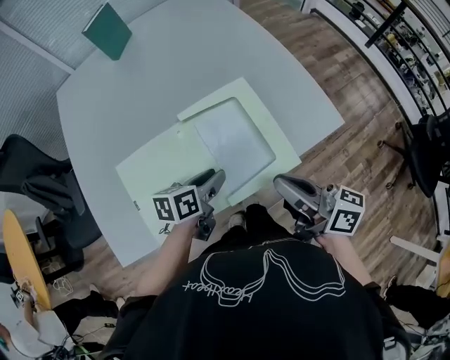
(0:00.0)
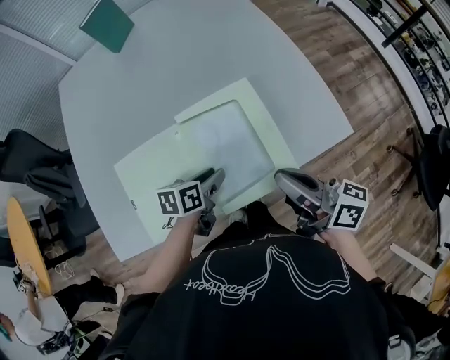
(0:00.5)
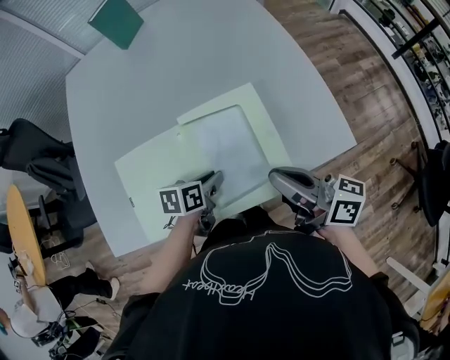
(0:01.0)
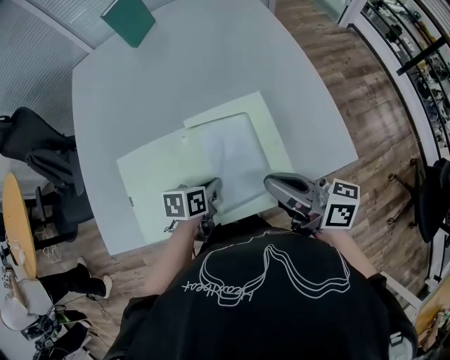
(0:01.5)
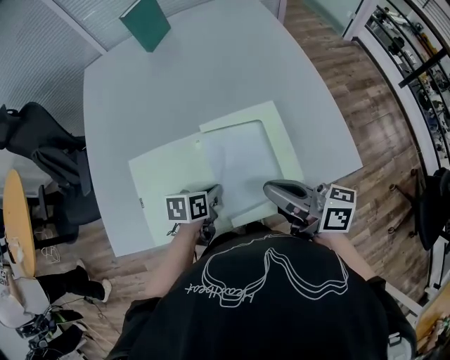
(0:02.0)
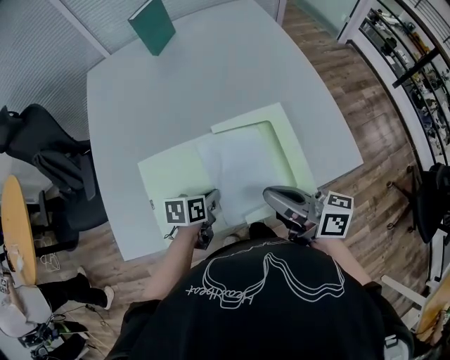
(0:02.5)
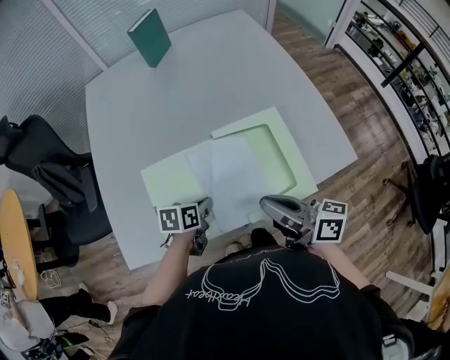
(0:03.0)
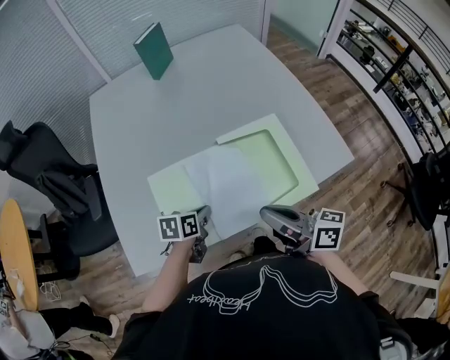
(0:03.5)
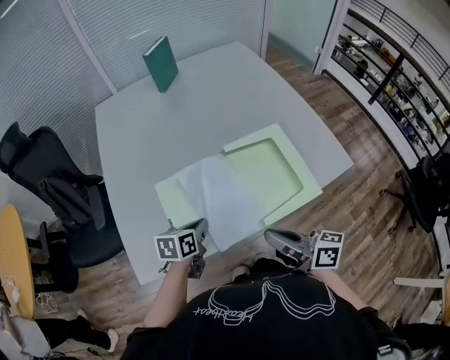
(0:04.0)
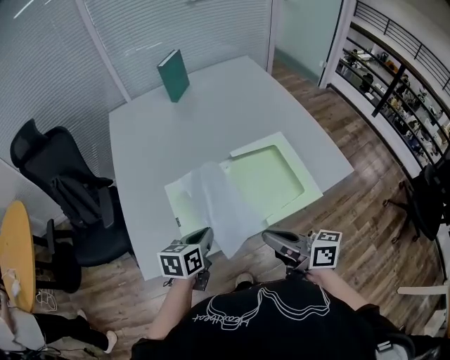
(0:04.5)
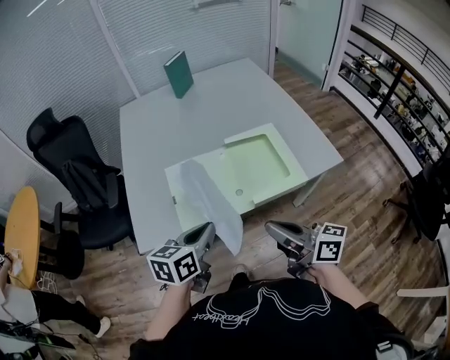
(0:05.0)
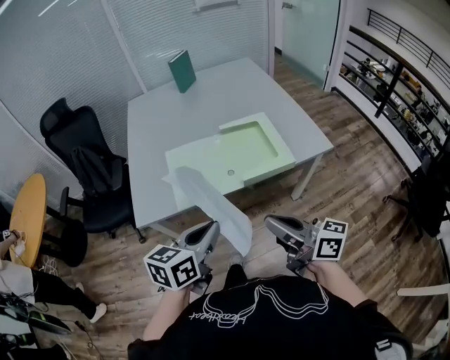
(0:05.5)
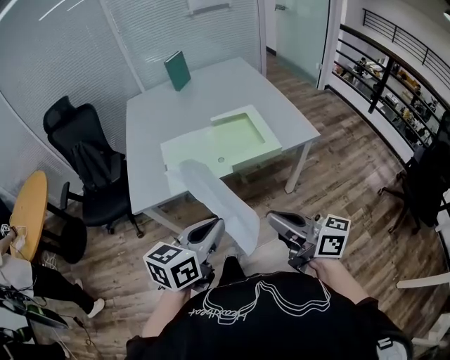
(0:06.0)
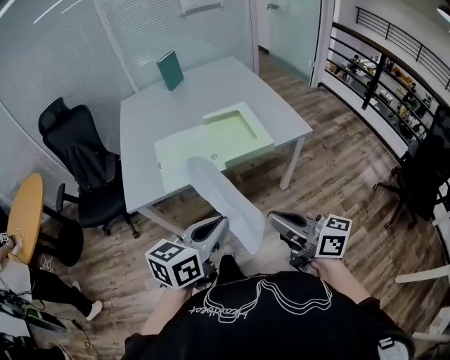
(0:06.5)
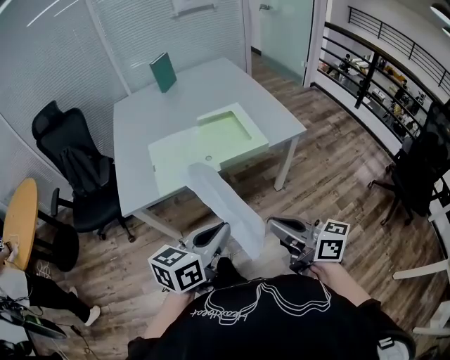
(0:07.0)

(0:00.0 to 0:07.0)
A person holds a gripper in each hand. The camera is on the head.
0:00.0 - 0:02.0: The left gripper goes roughly 5 cm downward, and closes its fingers. The right gripper shifts approximately 5 cm forward.
0:02.0 - 0:03.5: The right gripper heads to the left and backward, covering roughly 15 cm, while the left gripper moves to the left, about 10 cm.
0:03.5 - 0:05.0: The right gripper moves backward, some 15 cm; the left gripper shifts approximately 25 cm backward and upward, and turns by approximately 30 degrees.
0:05.0 - 0:07.0: The right gripper moves backward, some 25 cm. The left gripper moves backward and to the right, about 30 cm.

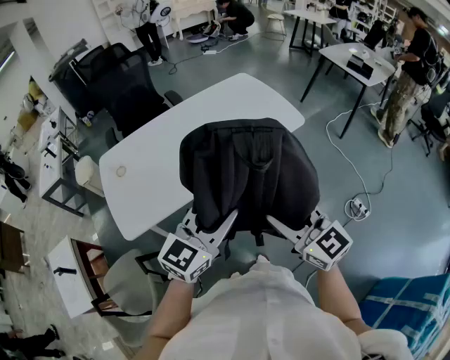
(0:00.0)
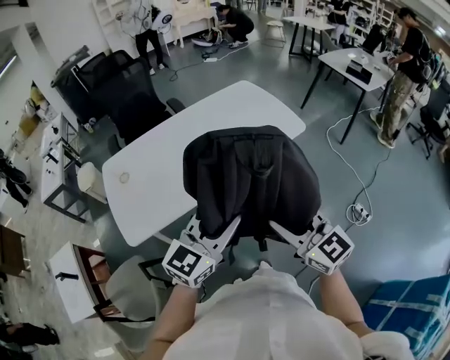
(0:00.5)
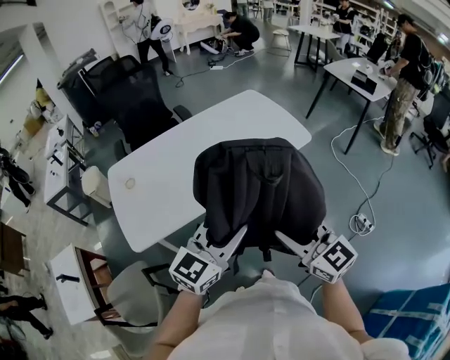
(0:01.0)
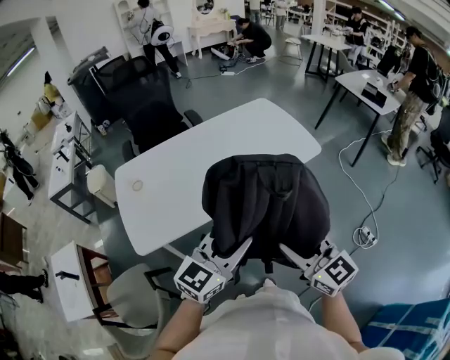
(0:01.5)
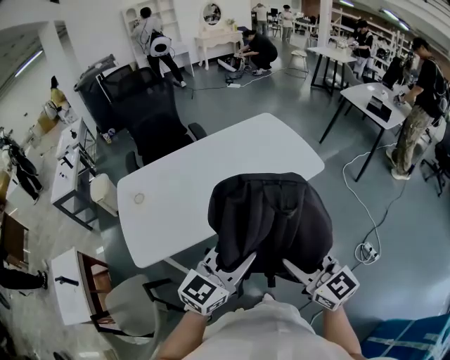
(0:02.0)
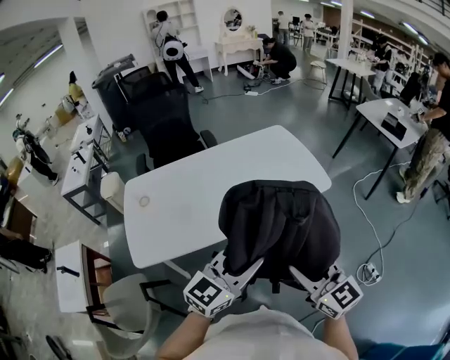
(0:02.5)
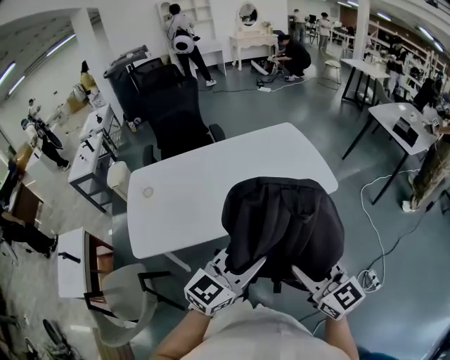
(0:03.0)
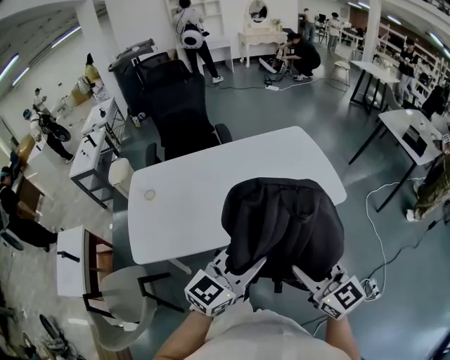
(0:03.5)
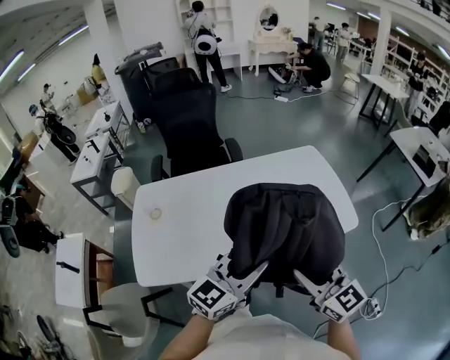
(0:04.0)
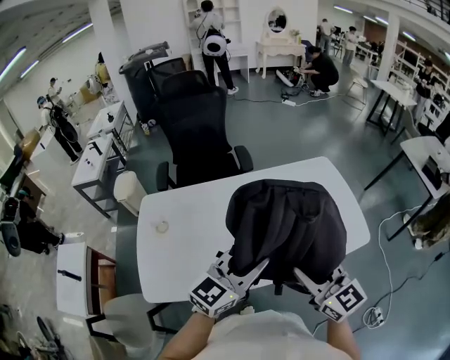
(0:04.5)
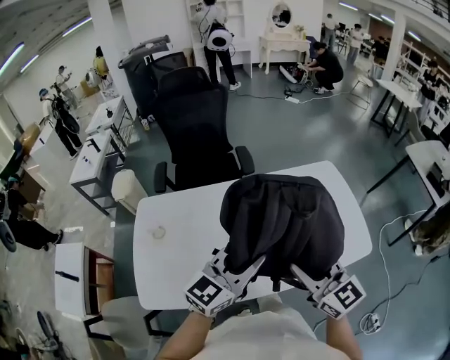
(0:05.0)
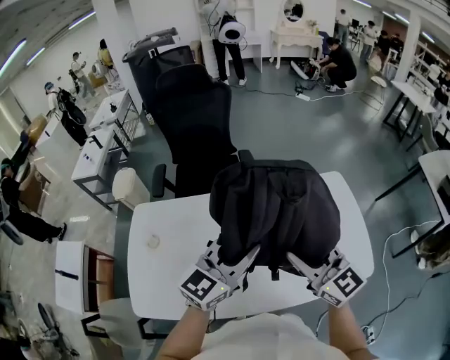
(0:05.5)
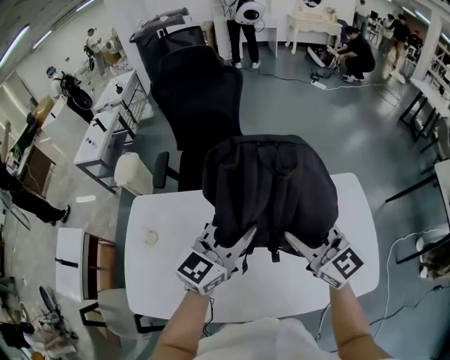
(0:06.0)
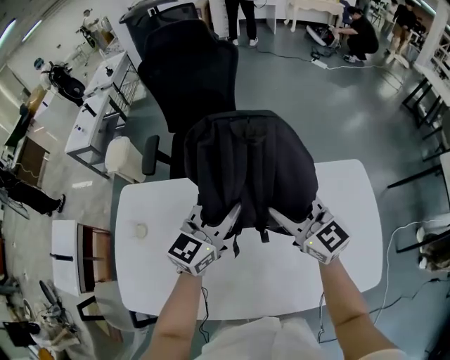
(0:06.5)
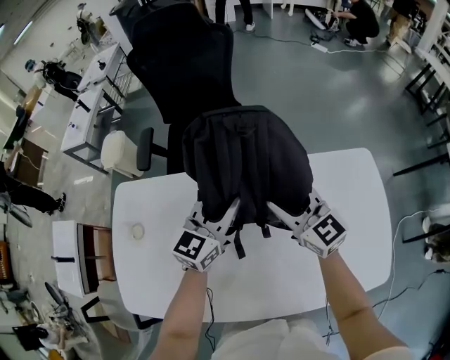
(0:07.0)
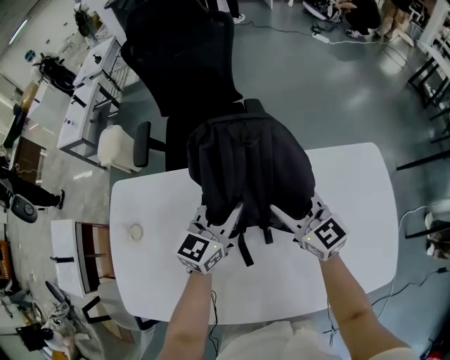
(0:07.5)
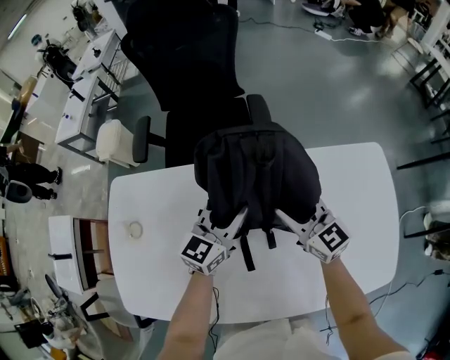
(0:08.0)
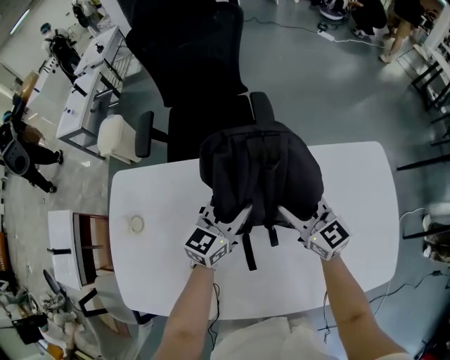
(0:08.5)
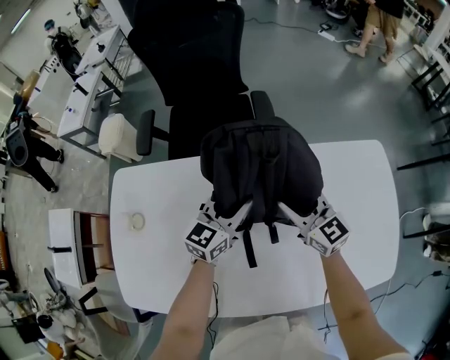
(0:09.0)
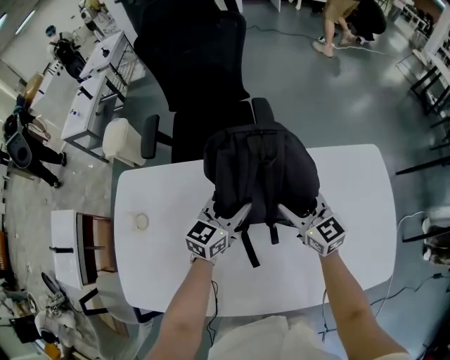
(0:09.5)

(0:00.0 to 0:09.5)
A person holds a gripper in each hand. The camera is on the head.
0:00.0 - 0:02.0: The grippers stay close to where they were, moving slightly.
0:02.0 - 0:04.0: The grippers both shift forward by approximately 20 cm.
0:04.0 - 0:05.5: Both grippers move forward, approximately 25 cm.
0:05.5 - 0:07.5: The left gripper shifts approximately 30 cm downward and forward, while the right gripper moves forward and downward, roughly 30 cm.
0:07.5 - 0:09.5: The left gripper opens.

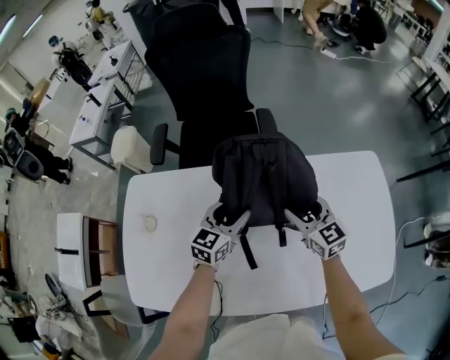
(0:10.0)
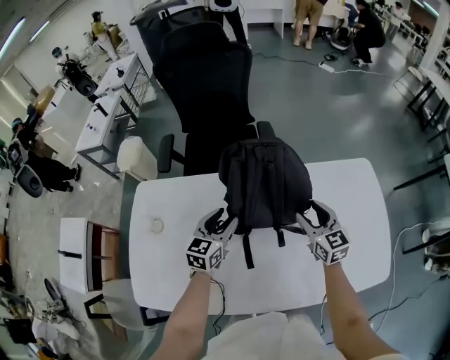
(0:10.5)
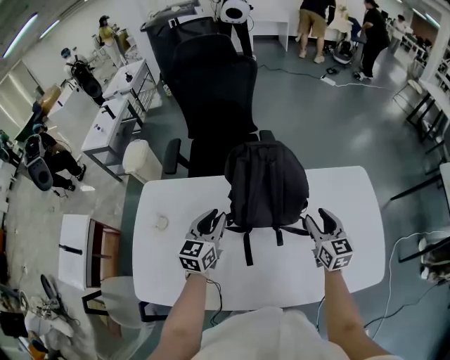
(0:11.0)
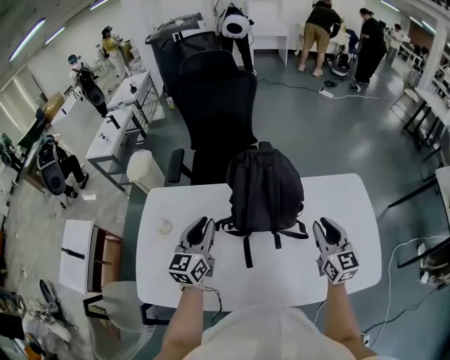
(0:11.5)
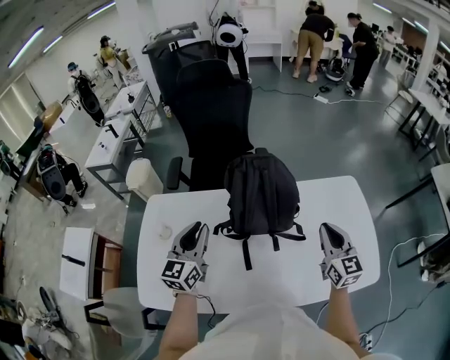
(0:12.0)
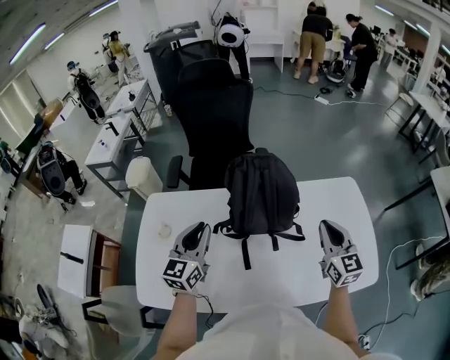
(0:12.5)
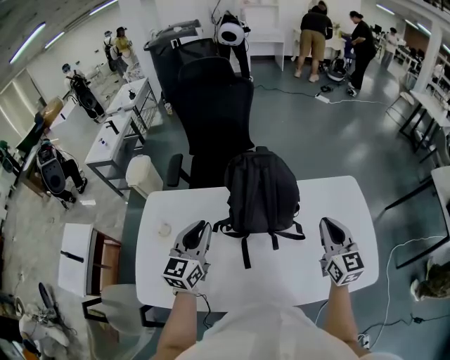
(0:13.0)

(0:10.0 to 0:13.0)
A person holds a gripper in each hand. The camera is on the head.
0:10.0 - 0:11.5: The left gripper heads upward, to the left and backward, covering roughly 20 cm, swivels roughly 20 degrees, and closes its fingers. Meanwhile the right gripper heads upward, backward and to the right, covering roughly 15 cm, and closes.
0:11.5 - 0:13.0: The grippers make only small movements.

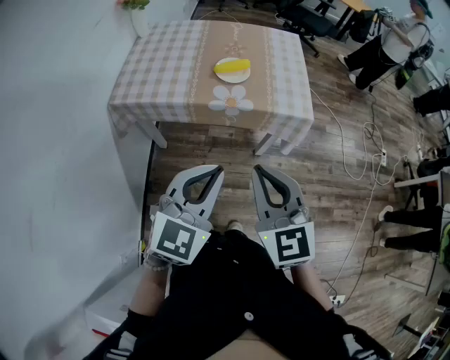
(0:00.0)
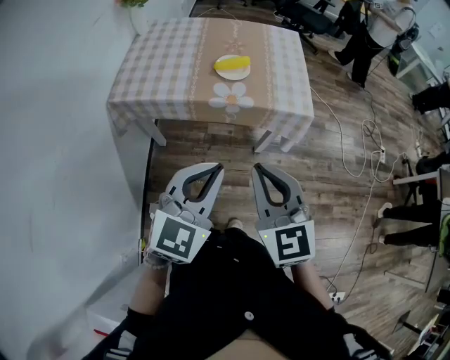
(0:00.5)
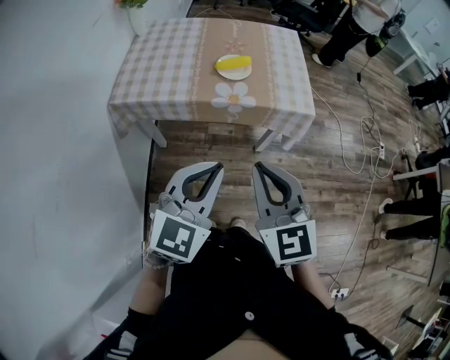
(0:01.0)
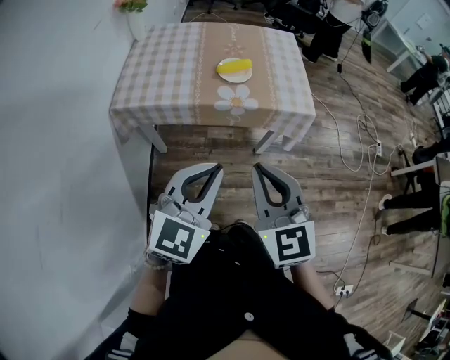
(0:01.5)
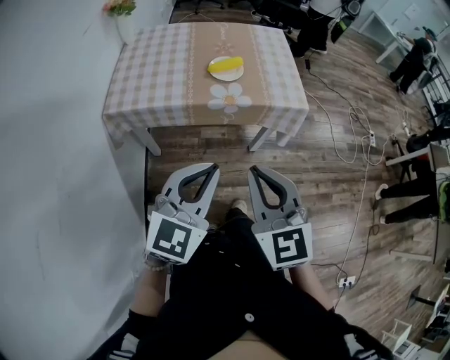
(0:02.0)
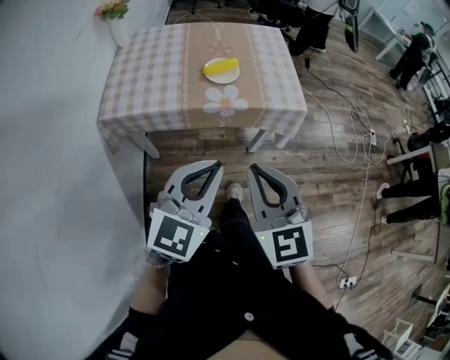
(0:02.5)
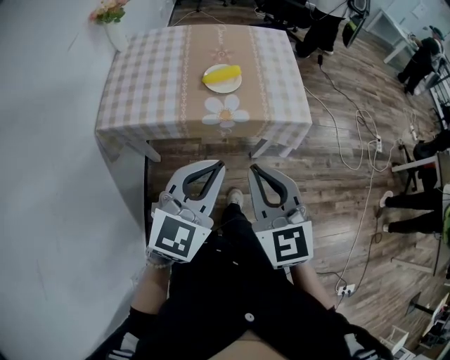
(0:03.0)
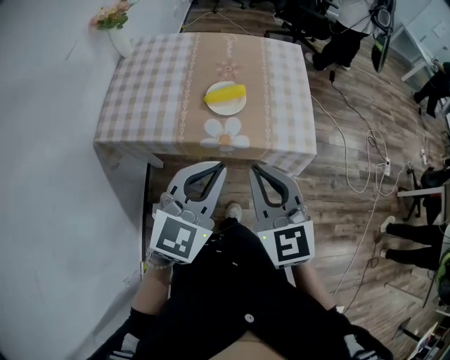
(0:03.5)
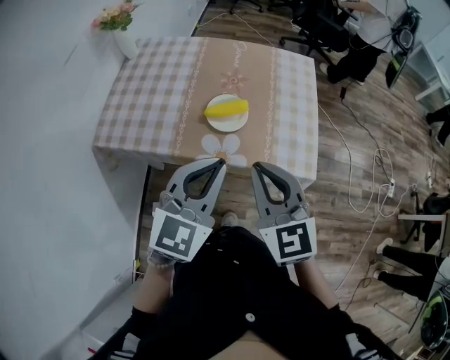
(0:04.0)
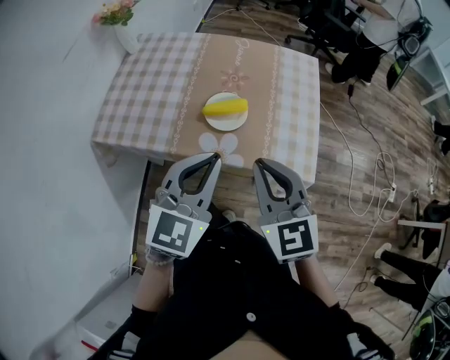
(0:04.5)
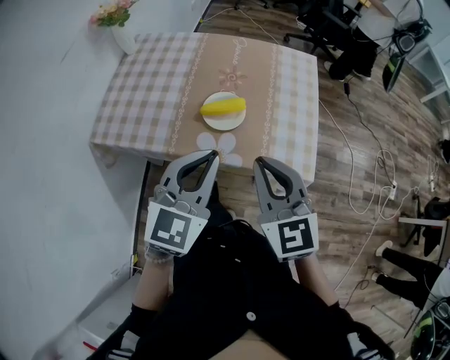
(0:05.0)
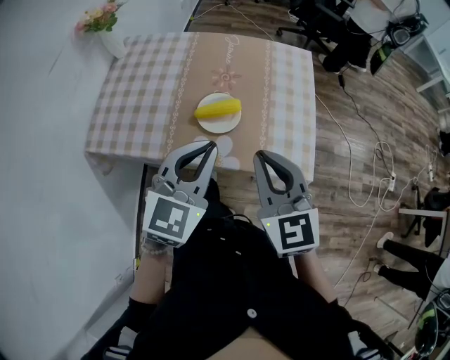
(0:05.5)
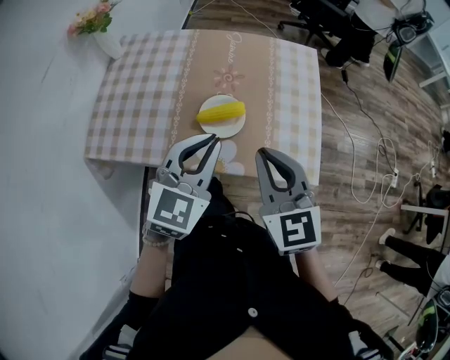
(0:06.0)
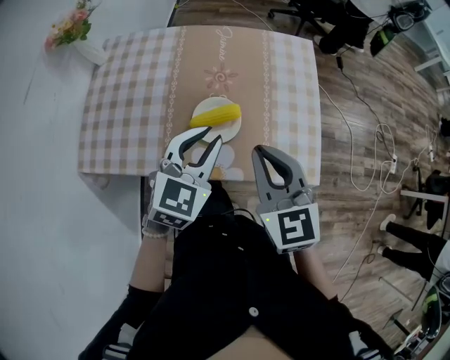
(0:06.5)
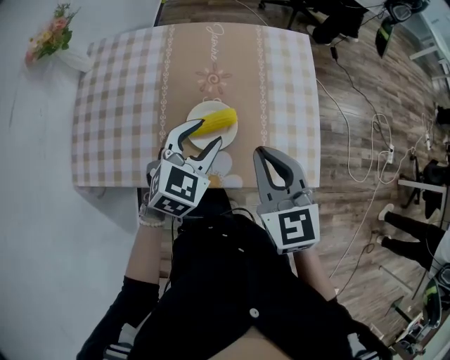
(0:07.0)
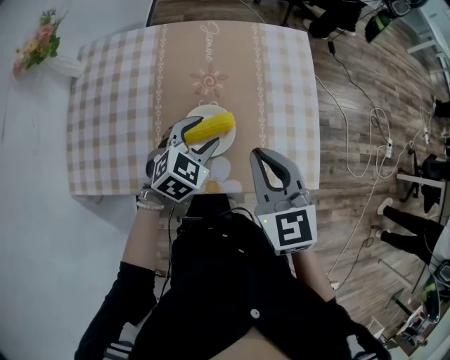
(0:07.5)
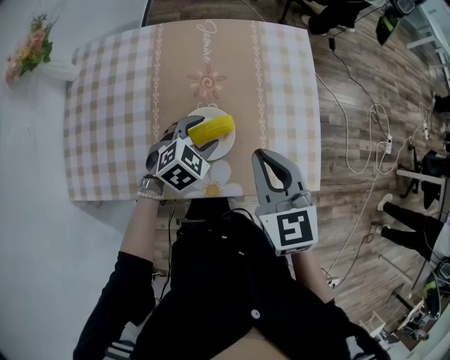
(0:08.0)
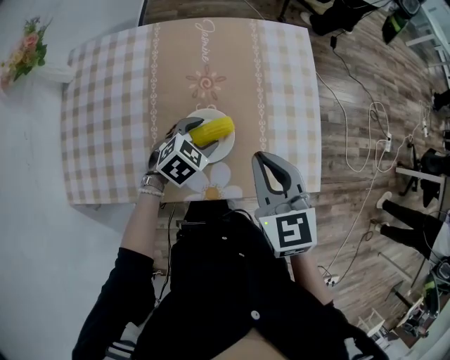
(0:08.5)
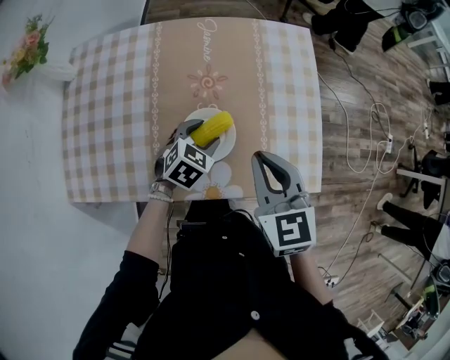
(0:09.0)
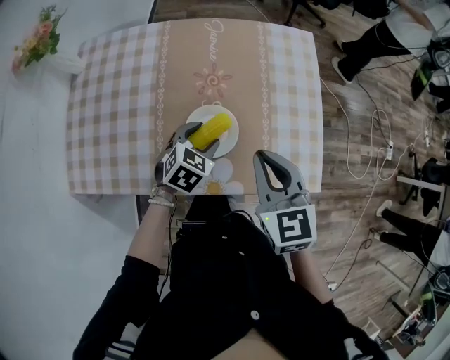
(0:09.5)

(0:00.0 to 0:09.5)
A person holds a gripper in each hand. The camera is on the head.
0:00.0 - 0:02.0: The two grippers go about 5 cm to the left.
0:02.0 - 0:04.0: The grippers both shift forward by approximately 30 cm.
0:04.0 - 0:05.5: The grippers both shift forward by roughly 5 cm.
0:05.5 - 0:07.5: The right gripper is displaced forward and downward by some 15 cm. Meanwhile the left gripper shifts roughly 25 cm downward and forward, turns by approximately 30 degrees, and opens.
0:07.5 - 0:09.5: The left gripper travels downward by some 5 cm.
